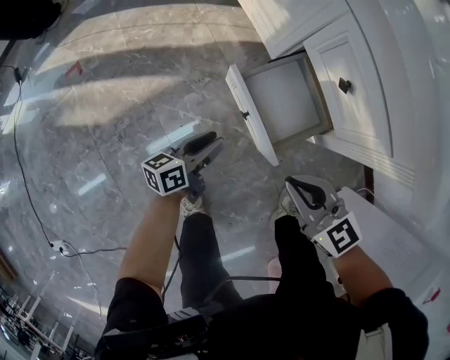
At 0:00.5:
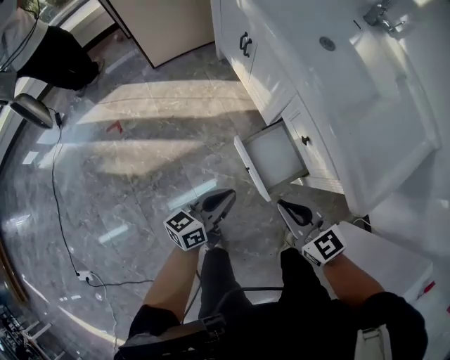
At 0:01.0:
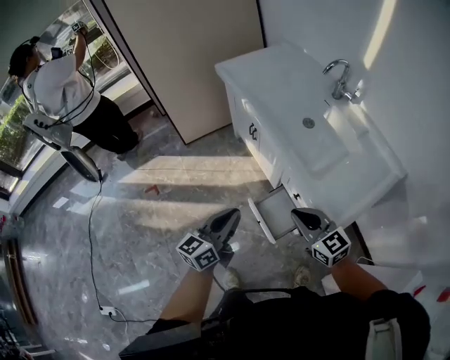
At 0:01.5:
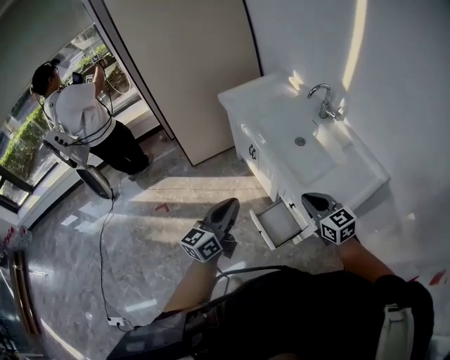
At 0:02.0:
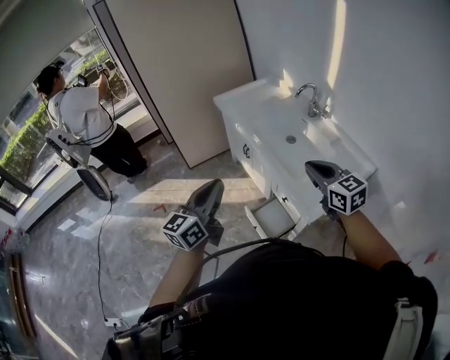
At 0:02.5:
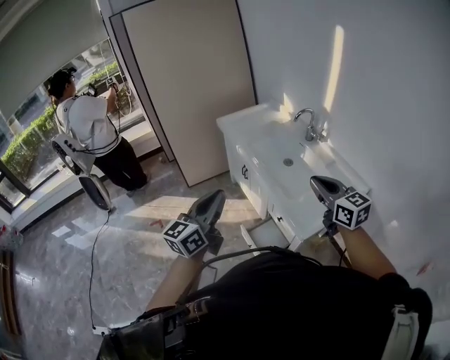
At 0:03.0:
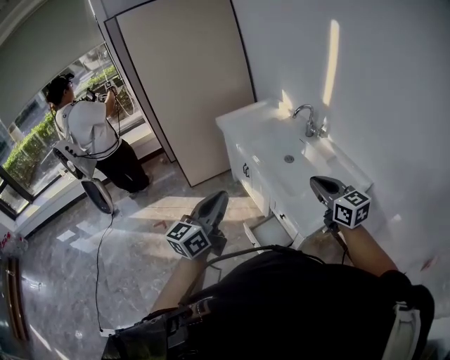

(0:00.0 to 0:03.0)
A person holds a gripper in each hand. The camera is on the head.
0:00.0 - 0:01.5: Both grippers travel together upward, some 60 cm. The left gripper rotates approximately 40 degrees, and closes.
0:01.5 - 0:03.0: The left gripper travels upward and backward by roughly 15 cm. Meanwhile the right gripper travels upward by some 15 cm.

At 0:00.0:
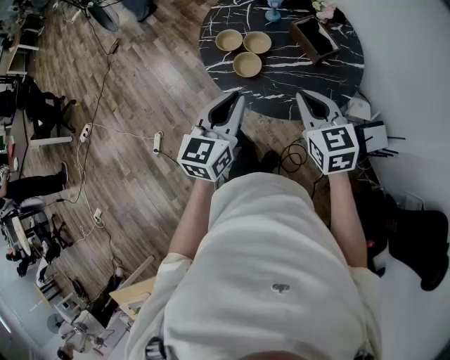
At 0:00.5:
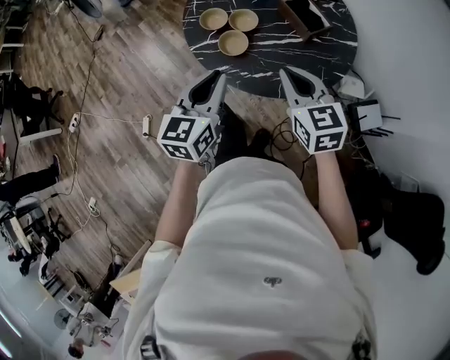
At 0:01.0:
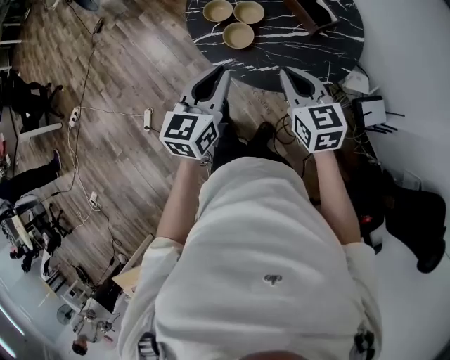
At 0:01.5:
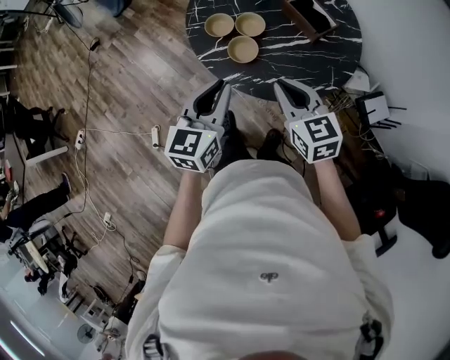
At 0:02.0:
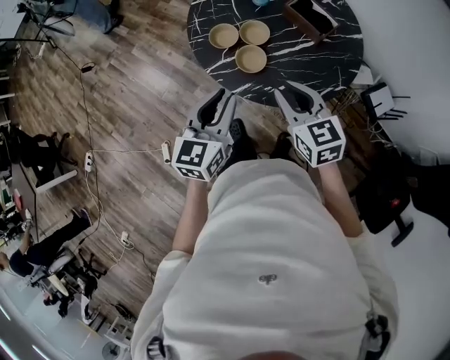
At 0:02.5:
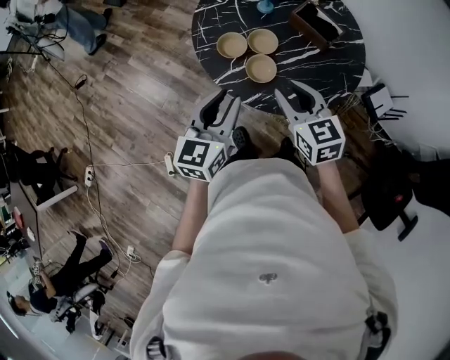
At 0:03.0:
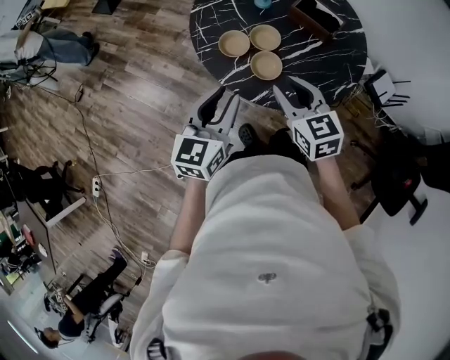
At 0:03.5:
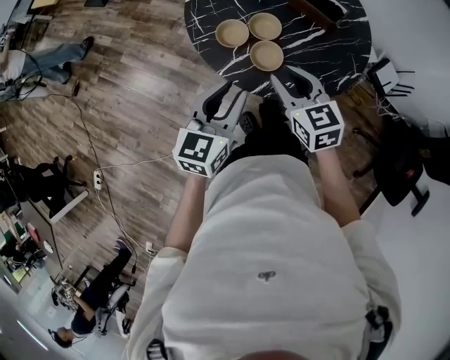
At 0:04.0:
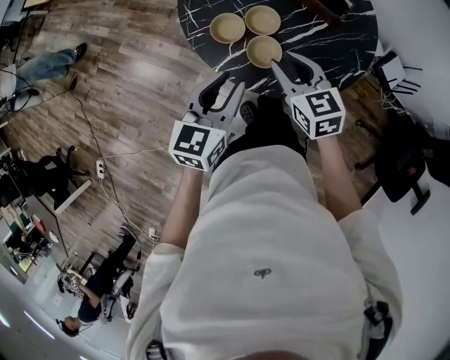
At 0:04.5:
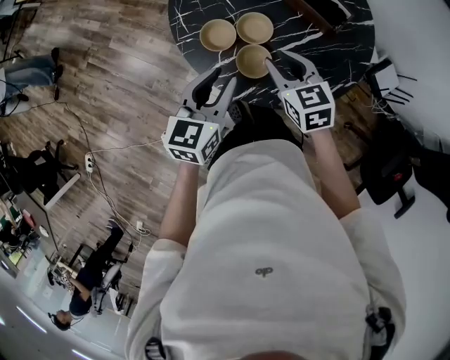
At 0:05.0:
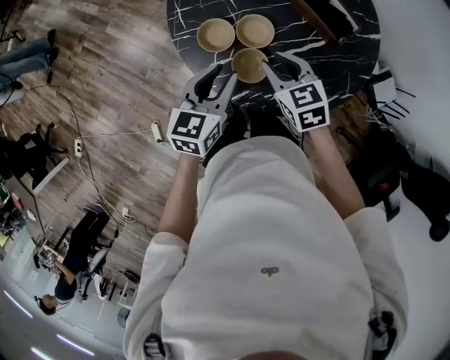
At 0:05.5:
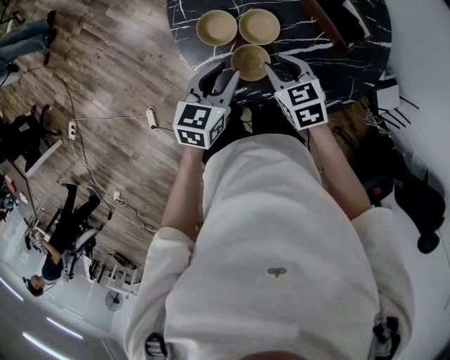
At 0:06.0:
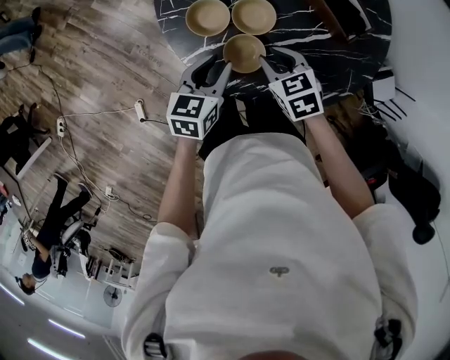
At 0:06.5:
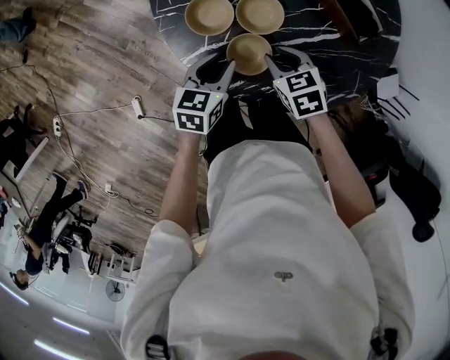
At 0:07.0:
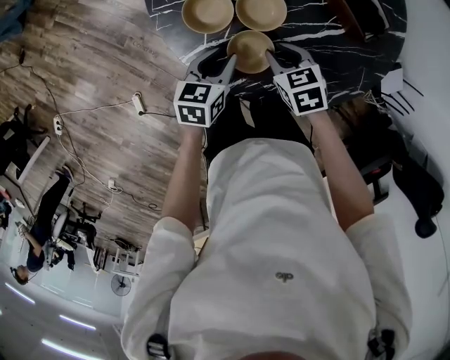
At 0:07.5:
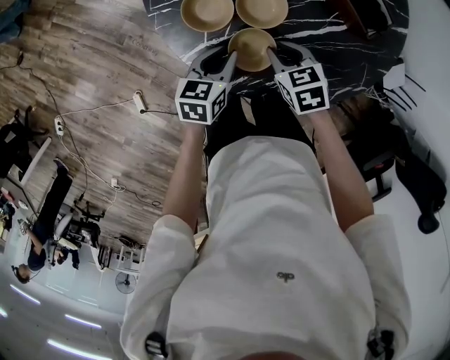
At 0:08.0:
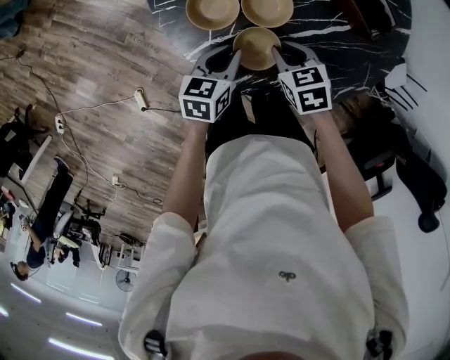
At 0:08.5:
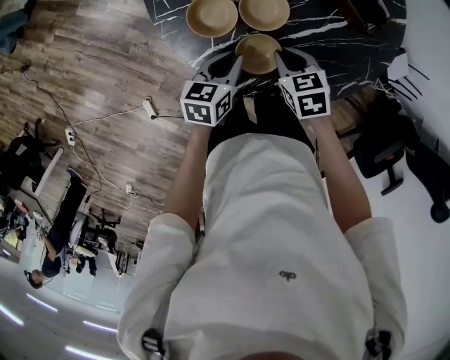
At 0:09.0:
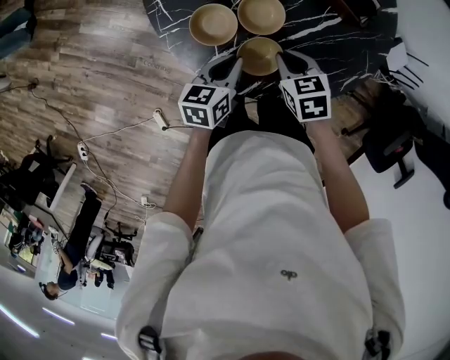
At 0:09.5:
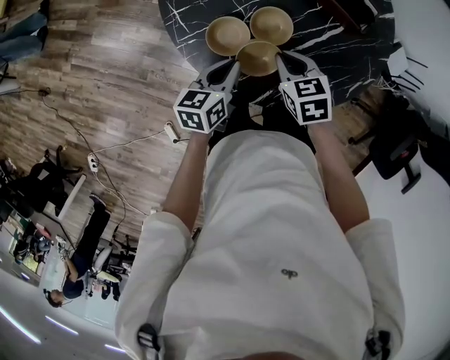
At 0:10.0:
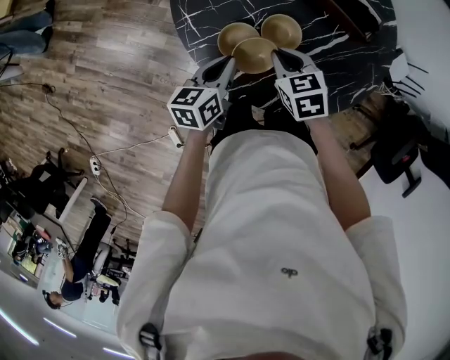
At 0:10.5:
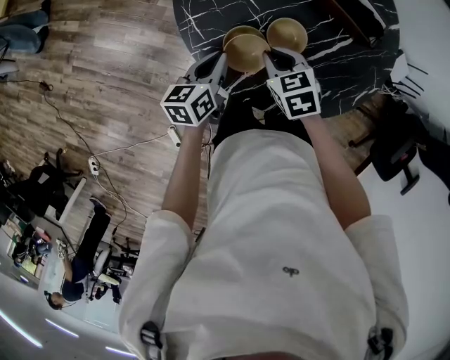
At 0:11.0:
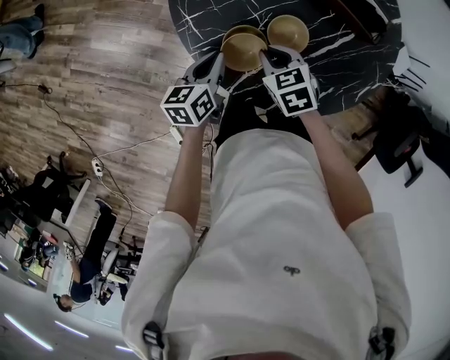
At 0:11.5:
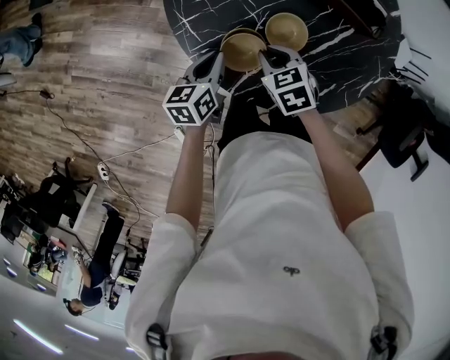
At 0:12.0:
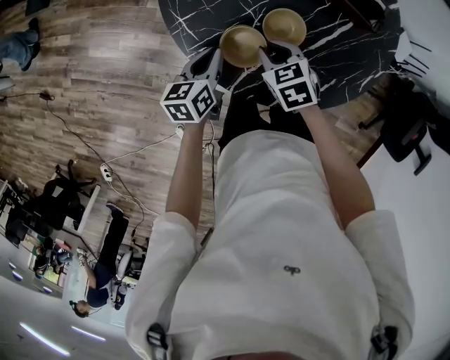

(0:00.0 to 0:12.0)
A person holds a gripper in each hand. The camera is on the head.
0:00.0 - 0:02.0: The right gripper is displaced to the left by roughly 10 cm. The left gripper moves to the left and forward, roughly 10 cm.
0:02.0 - 0:04.0: The left gripper shifts roughly 10 cm forward, while the right gripper shifts approximately 15 cm forward, downward and to the left.
0:04.0 - 0:06.0: The right gripper moves downward, about 15 cm, and changes its angle by roughly 30 degrees; the left gripper moves downward and forward, some 20 cm, and changes its angle by roughly 20 degrees.
0:06.0 - 0:08.0: The two grippers go about 10 cm downward.
0:08.0 - 0:10.0: The left gripper goes roughly 15 cm to the left, upward and forward. The right gripper heads to the left and upward, covering approximately 10 cm.
0:10.0 - 0:12.0: The left gripper ends up roughly 5 cm from where it was; the right gripper ends up approximately 5 cm from where it was.

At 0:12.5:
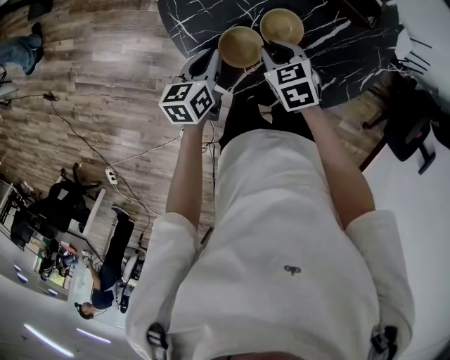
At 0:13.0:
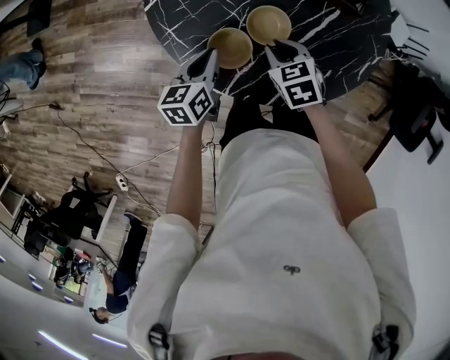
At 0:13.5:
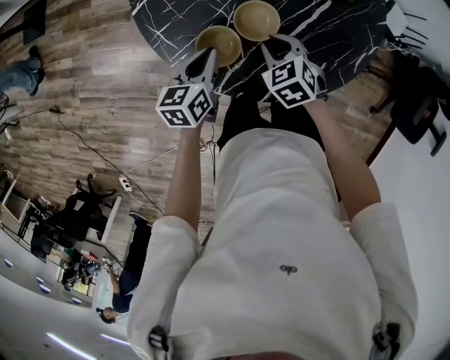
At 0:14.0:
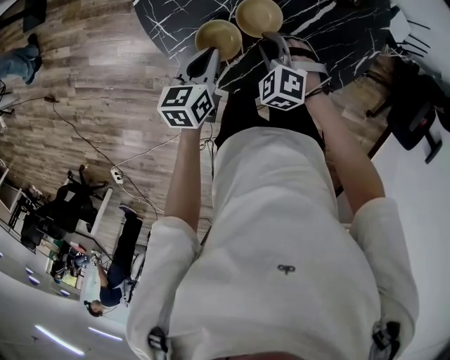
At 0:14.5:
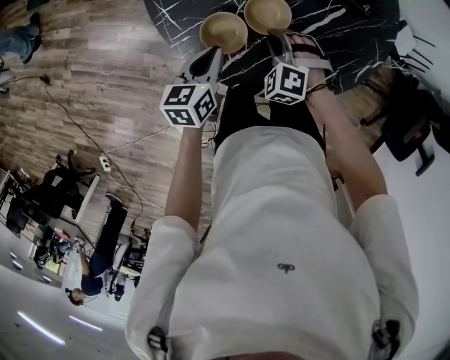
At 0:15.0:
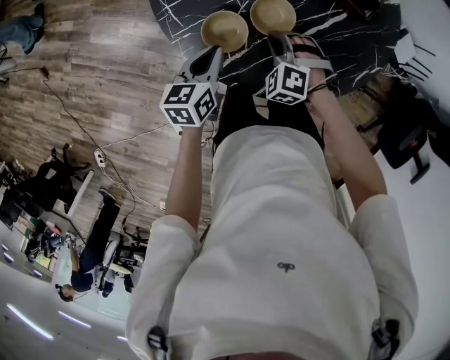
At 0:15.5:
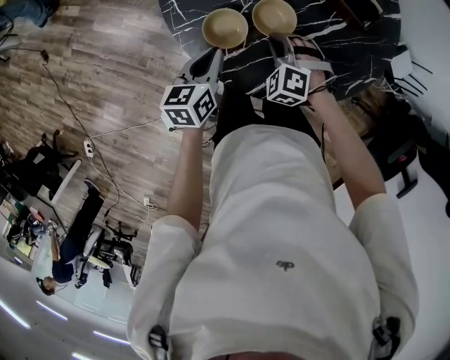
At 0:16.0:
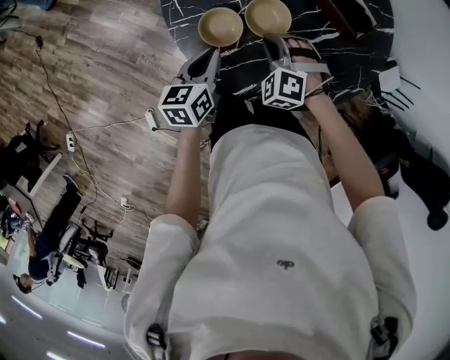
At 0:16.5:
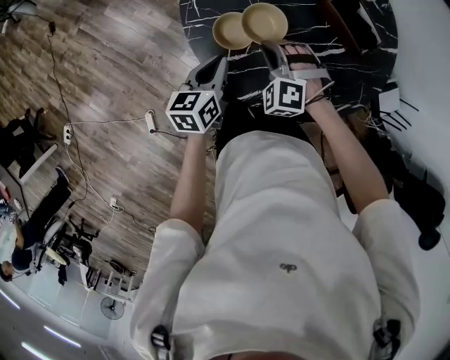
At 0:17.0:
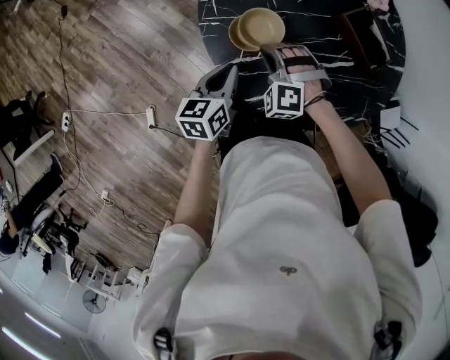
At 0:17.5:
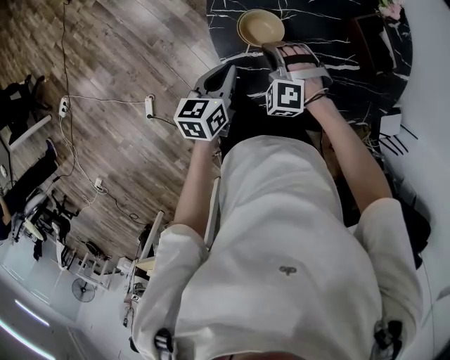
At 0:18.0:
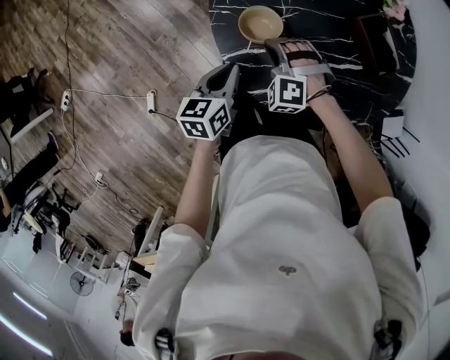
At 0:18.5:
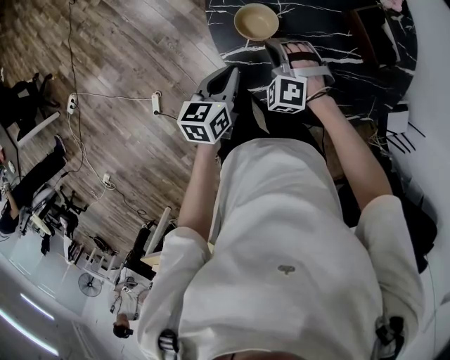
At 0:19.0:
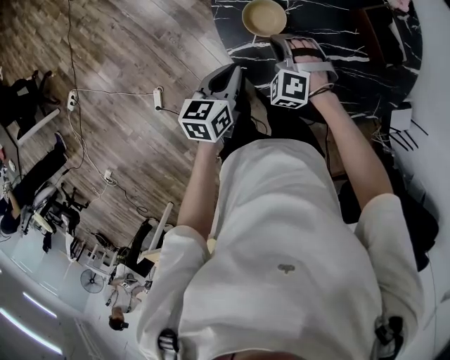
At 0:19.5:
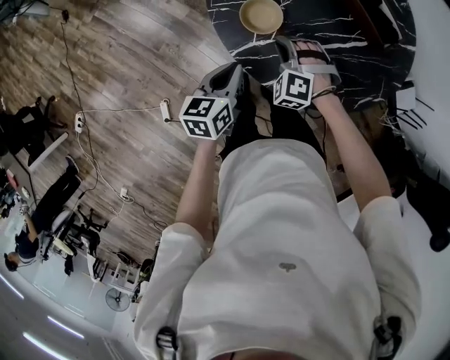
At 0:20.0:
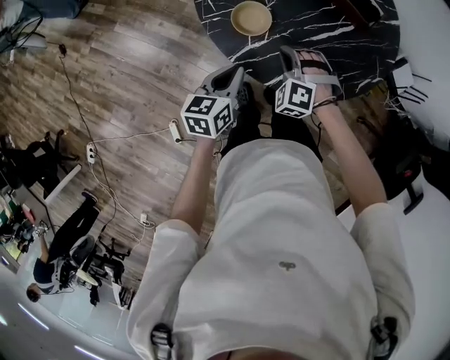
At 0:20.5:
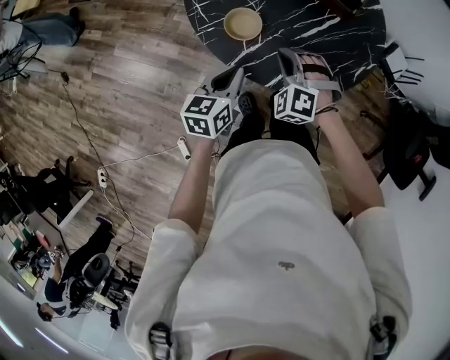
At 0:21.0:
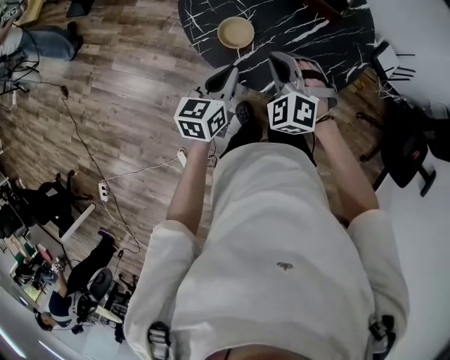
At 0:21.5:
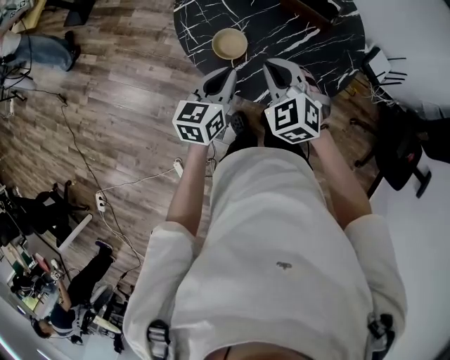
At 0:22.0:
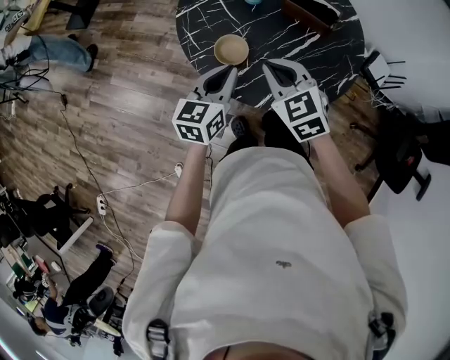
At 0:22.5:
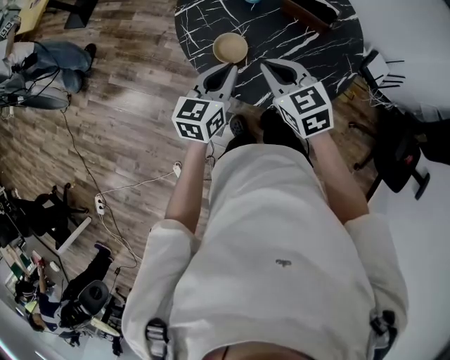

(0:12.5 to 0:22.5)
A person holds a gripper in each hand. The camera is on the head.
0:12.5 - 0:14.5: The right gripper moves approximately 5 cm, and rotates around the line of its fingers by roughly 60 degrees, counterclockwise from behind; the left gripper moves to the right, some 5 cm.
0:14.5 - 0:16.5: The left gripper goes roughly 5 cm backward, and swivels approximately 20 degrees. Meanwhile the right gripper is displaced upward by approximately 5 cm, and changes its angle by about 30 degrees.
0:16.5 - 0:18.5: The left gripper goes some 5 cm backward.
0:18.5 - 0:20.5: The right gripper moves upward, some 5 cm, and swivels roughly 30 degrees. The left gripper turns by approximately 30 degrees.
0:20.5 - 0:22.5: The left gripper travels upward and forward by about 10 cm. The right gripper moves upward, roughly 10 cm, and rotates around the line of its fingers by roughly 50 degrees, clockwise from behind.

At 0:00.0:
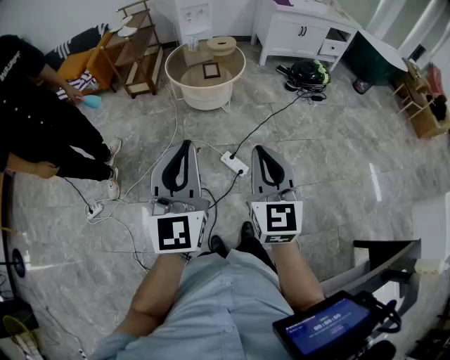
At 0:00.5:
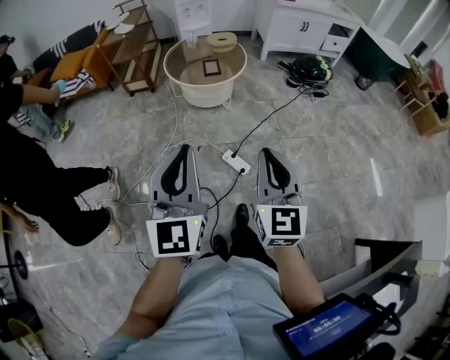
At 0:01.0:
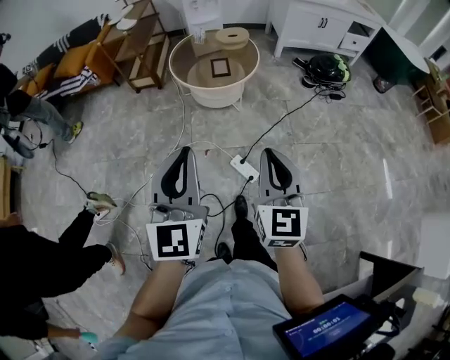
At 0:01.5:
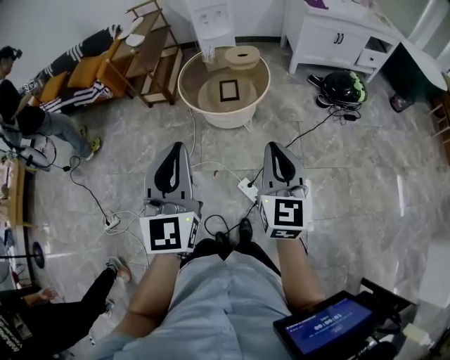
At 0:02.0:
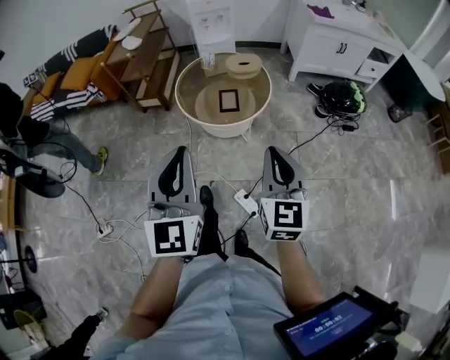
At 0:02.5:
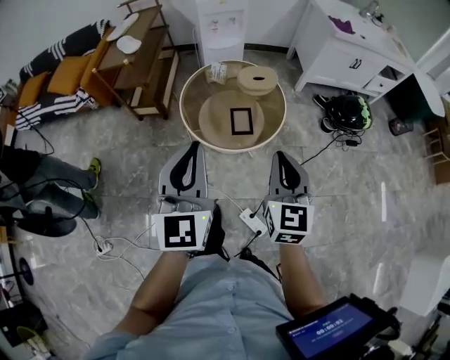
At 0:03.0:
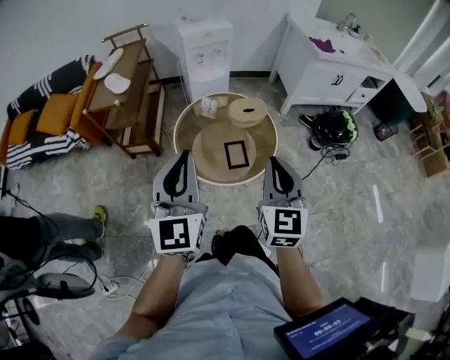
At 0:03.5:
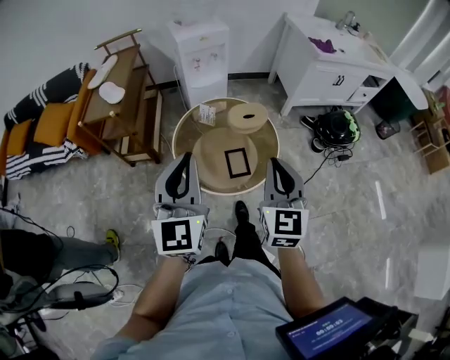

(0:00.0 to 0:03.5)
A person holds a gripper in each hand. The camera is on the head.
0:00.0 - 0:02.0: The two grippers go roughly 40 cm forward.
0:02.0 - 0:03.5: Both grippers move forward and to the left, about 35 cm.
